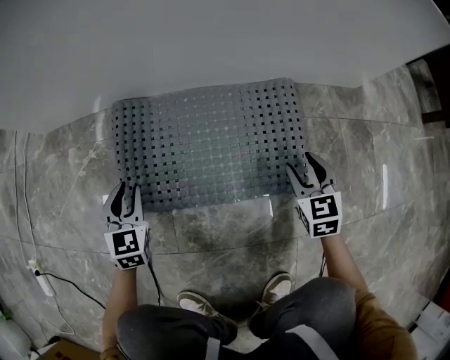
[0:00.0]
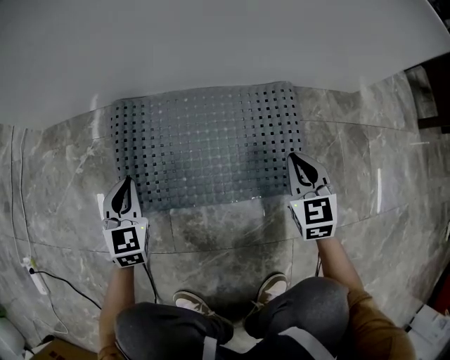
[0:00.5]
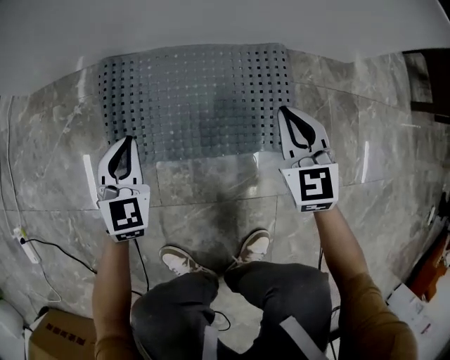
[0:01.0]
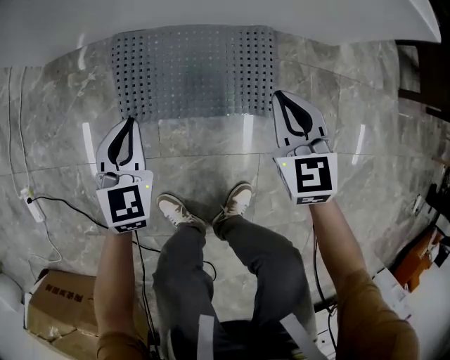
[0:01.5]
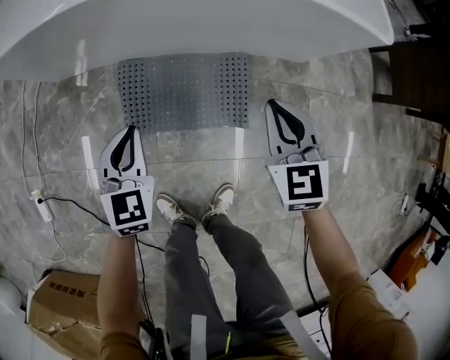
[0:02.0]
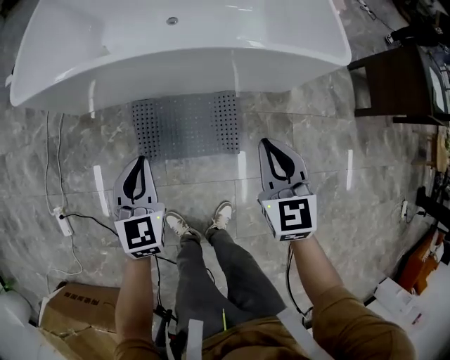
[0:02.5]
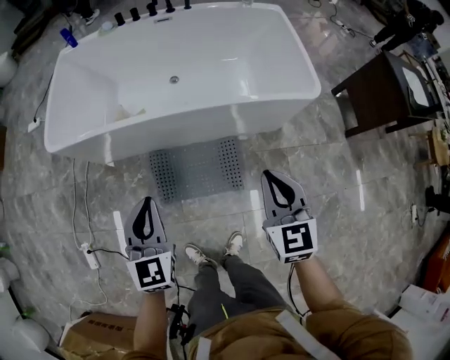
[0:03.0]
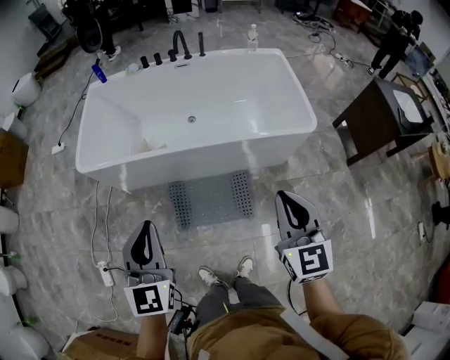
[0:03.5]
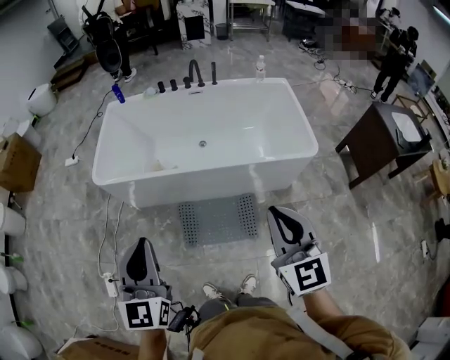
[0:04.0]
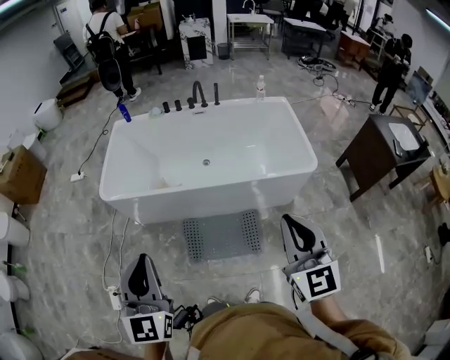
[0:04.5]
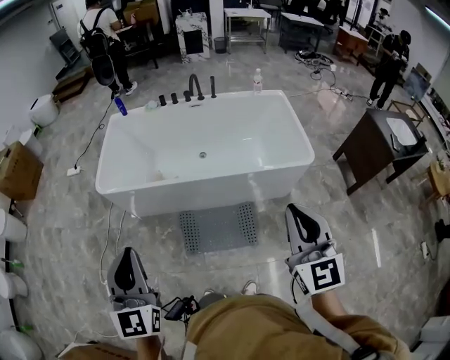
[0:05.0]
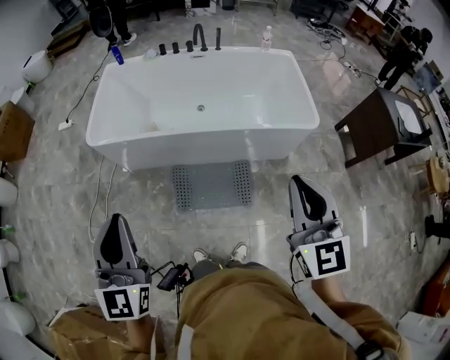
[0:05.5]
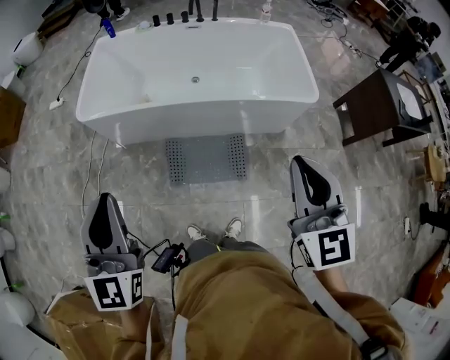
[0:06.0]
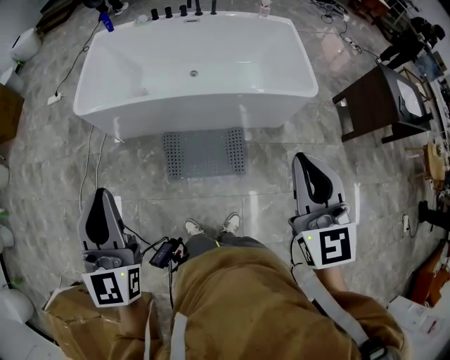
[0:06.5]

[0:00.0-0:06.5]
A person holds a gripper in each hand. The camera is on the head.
0:00.0 to 0:02.0: The two grippers go roughly 40 cm upward. The left gripper closes up, while the right gripper closes.
0:02.0 to 0:04.5: The grippers both shift upward by roughly 60 cm. The right gripper changes its angle by roughly 30 degrees; the left gripper swivels about 30 degrees.
0:04.5 to 0:06.5: The grippers stay close to where they were, moving slightly.

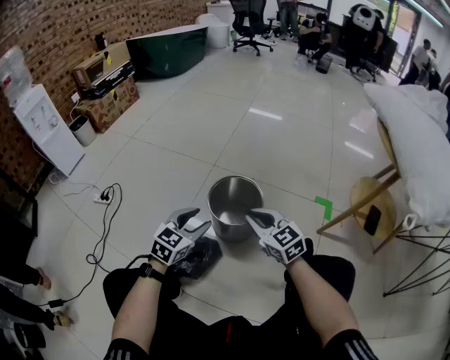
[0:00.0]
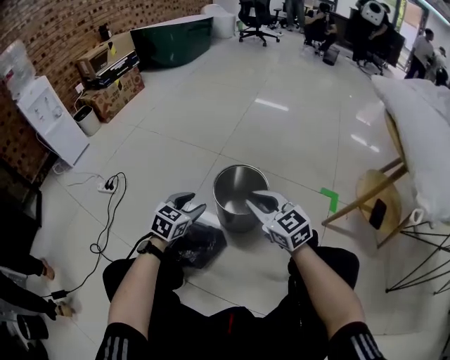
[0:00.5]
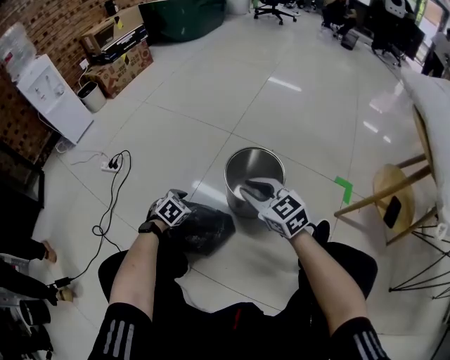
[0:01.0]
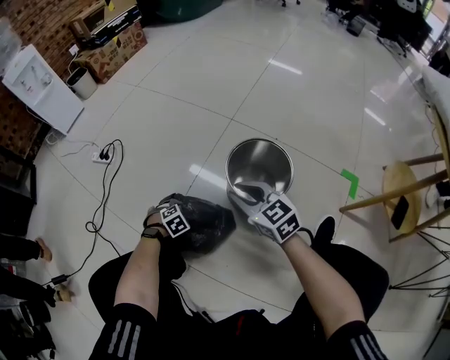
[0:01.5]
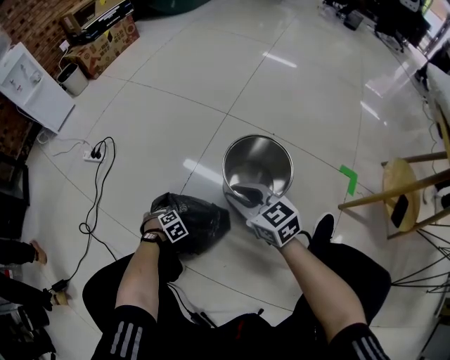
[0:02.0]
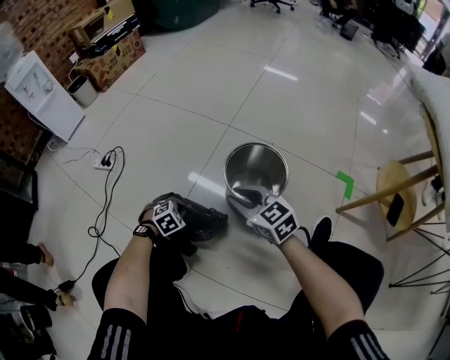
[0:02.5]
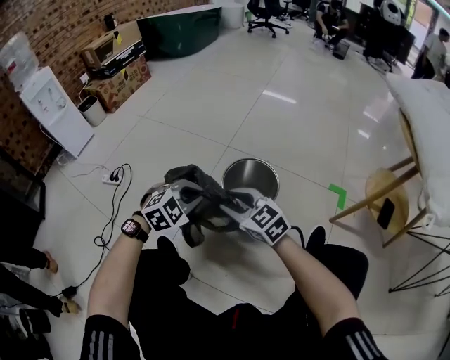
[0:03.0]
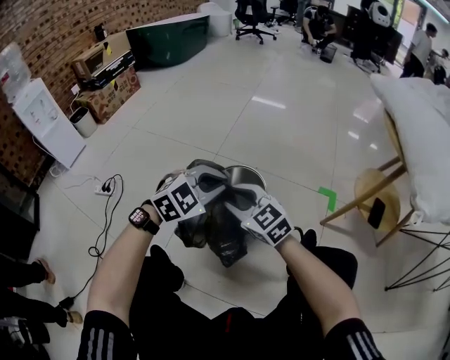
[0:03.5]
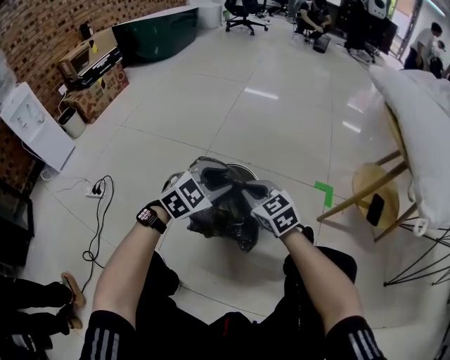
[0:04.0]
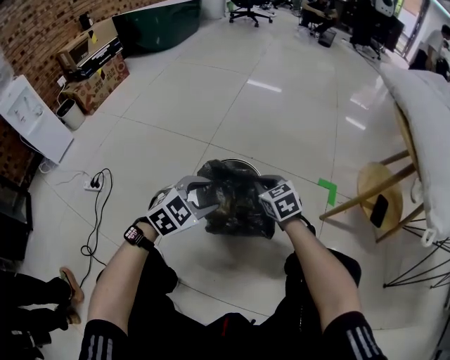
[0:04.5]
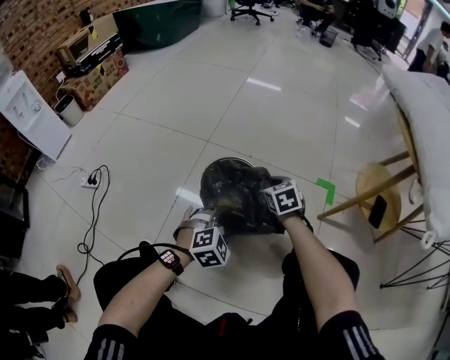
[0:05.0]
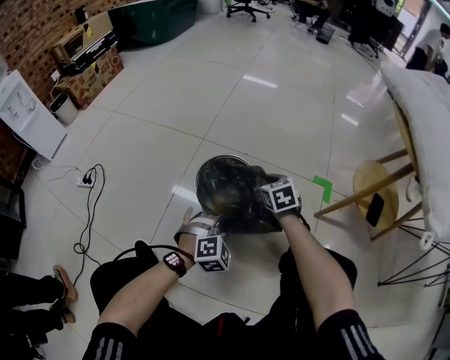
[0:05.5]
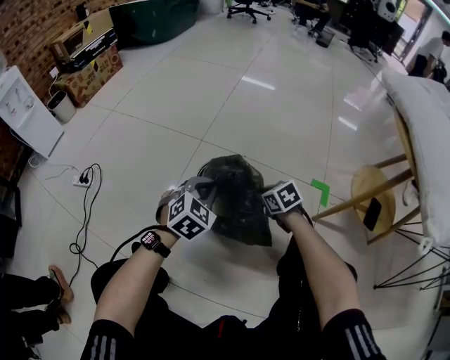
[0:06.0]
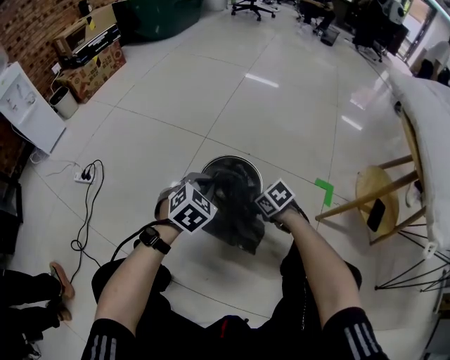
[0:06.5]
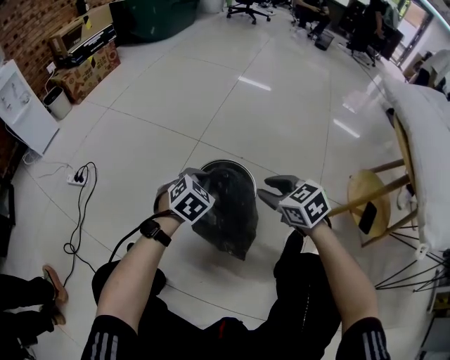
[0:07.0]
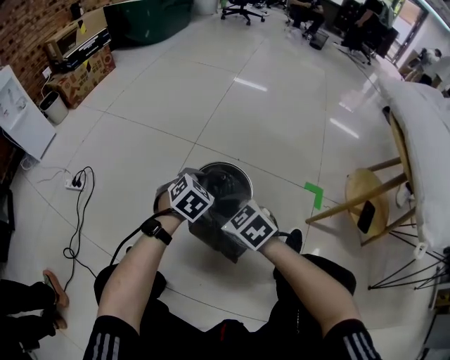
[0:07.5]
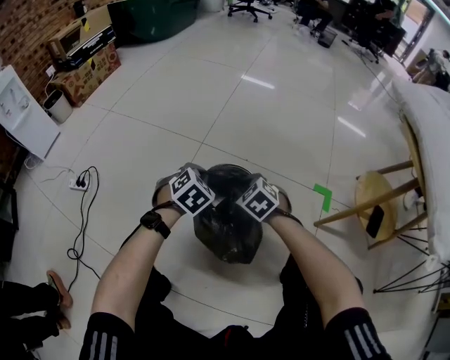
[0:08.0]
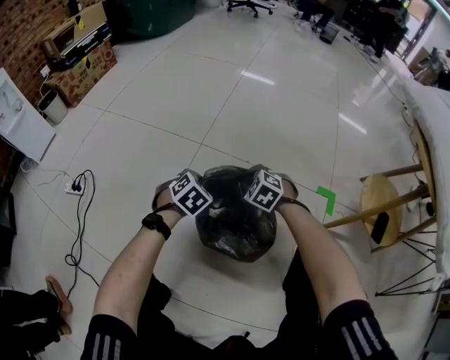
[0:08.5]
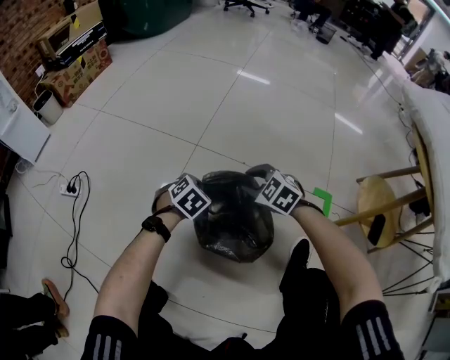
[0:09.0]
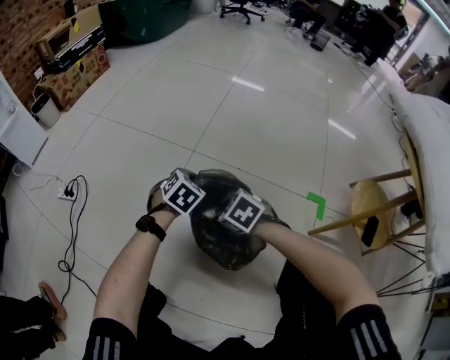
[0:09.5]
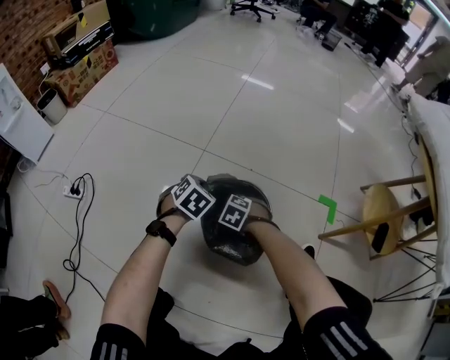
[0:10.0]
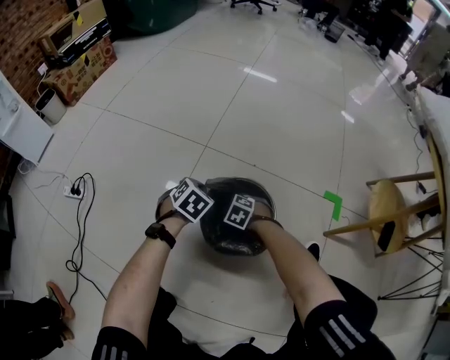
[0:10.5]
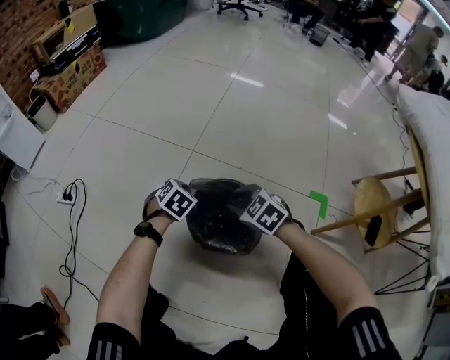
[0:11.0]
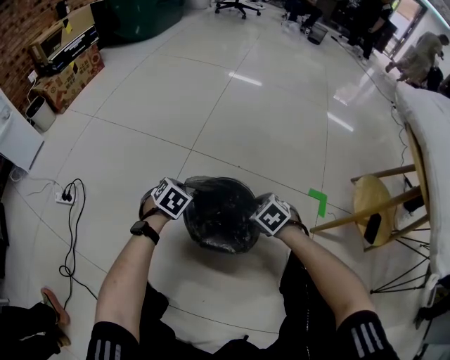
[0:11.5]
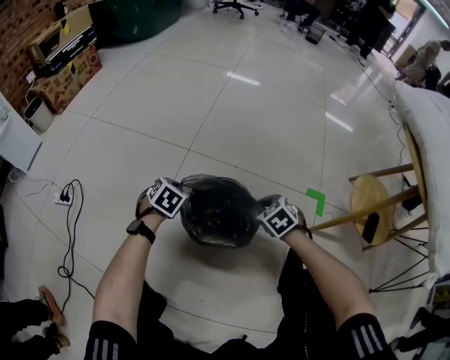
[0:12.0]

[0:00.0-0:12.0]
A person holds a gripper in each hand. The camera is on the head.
0:00.0 to 0:02.0: The left gripper shifts roughly 40 cm downward, points its fingers about 60 degrees further downward, and closes its fingers; the right gripper changes place by some 15 cm.
0:02.0 to 0:04.0: The left gripper moves upward, some 40 cm, tilts its fingers about 50 degrees upward, and opens its fingers, while the right gripper changes place by approximately 15 cm, and closes up.
0:04.0 to 0:06.0: The right gripper moves downward and to the right, roughly 15 cm, and swivels about 30 degrees; the left gripper is displaced downward by about 10 cm, rotates roughly 20 degrees, and closes its fingers.
0:06.0 to 0:08.0: The right gripper moves up and down over about 20 cm, changing direction 2 times, and swivels about 30 degrees, while the left gripper is displaced forward by about 10 cm.
0:08.0 to 0:10.0: The left gripper is displaced downward and forward by about 10 cm. The right gripper swings up and down, some 15 cm each way, with 2 reversals, and turns by approximately 20 degrees.
0:10.0 to 0:12.0: The right gripper moves up and down over roughly 20 cm, changing direction 2 times, turns by approximately 30 degrees, and opens, then closes once more.

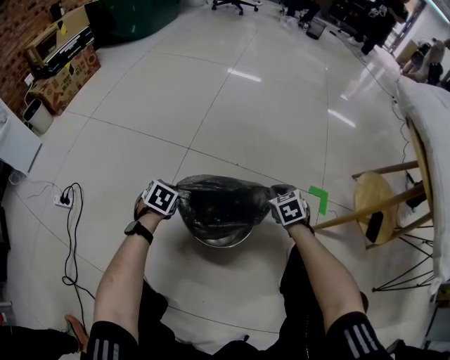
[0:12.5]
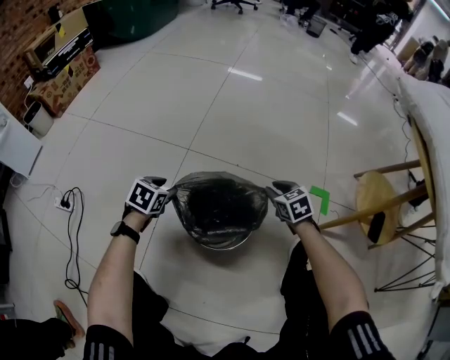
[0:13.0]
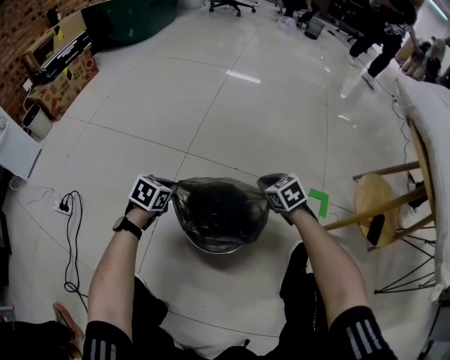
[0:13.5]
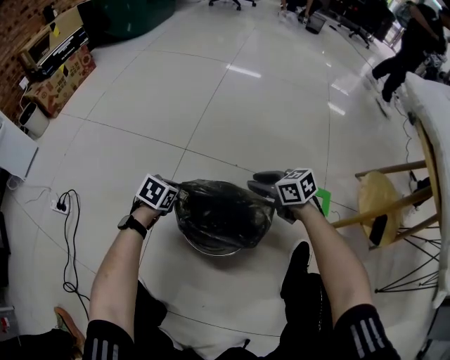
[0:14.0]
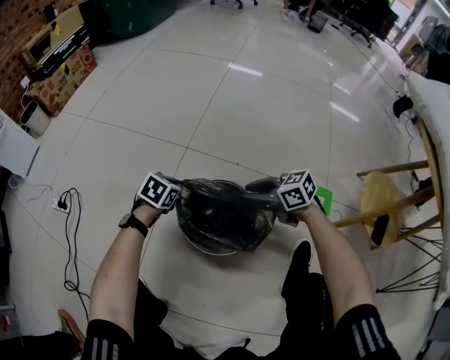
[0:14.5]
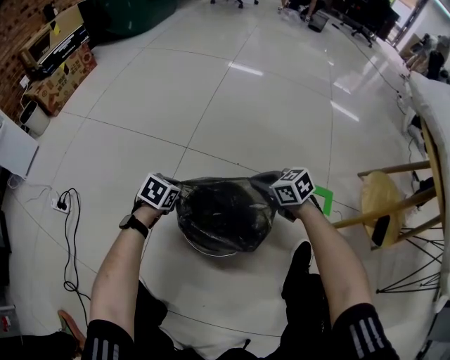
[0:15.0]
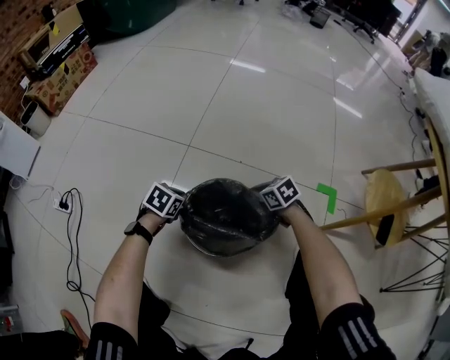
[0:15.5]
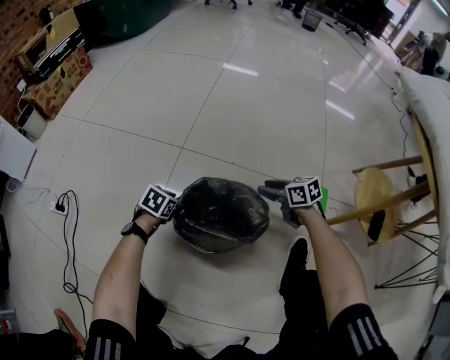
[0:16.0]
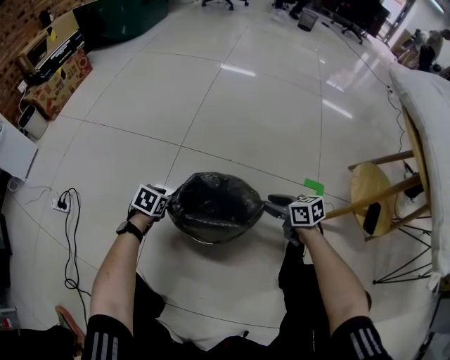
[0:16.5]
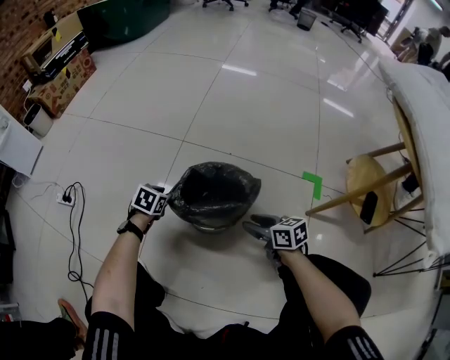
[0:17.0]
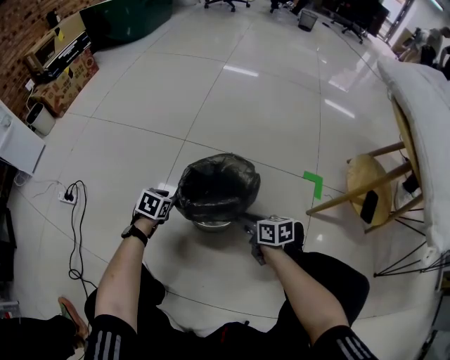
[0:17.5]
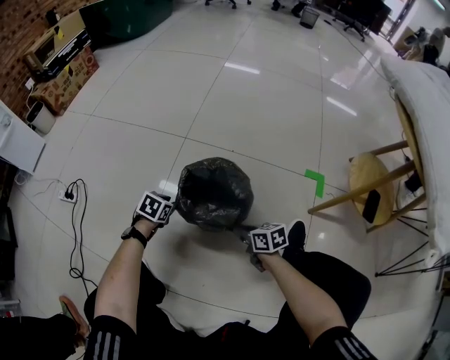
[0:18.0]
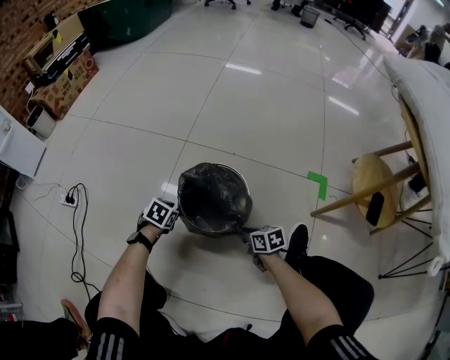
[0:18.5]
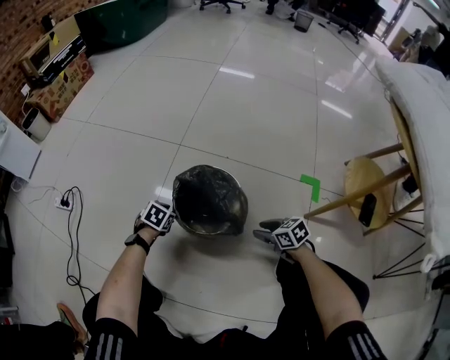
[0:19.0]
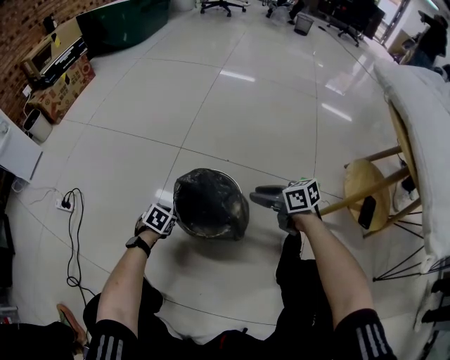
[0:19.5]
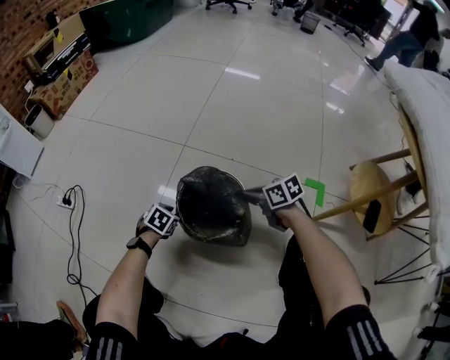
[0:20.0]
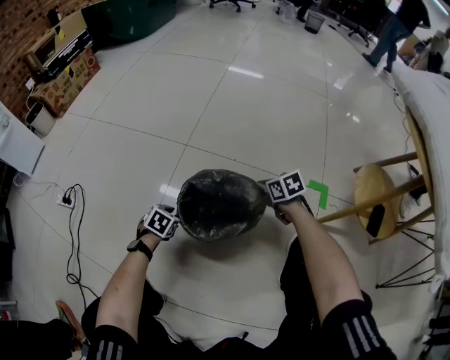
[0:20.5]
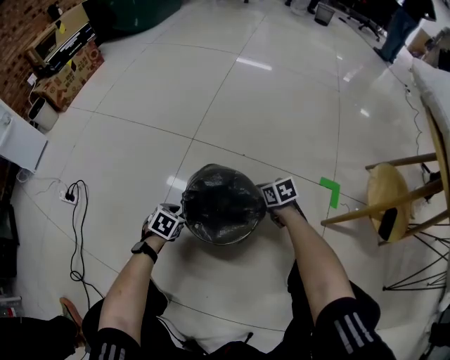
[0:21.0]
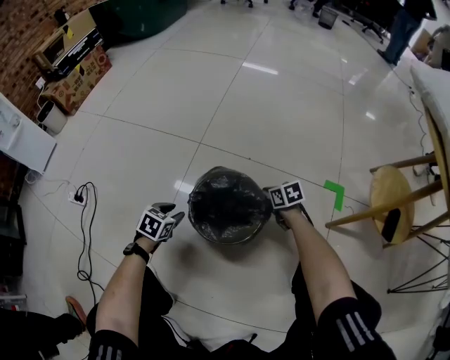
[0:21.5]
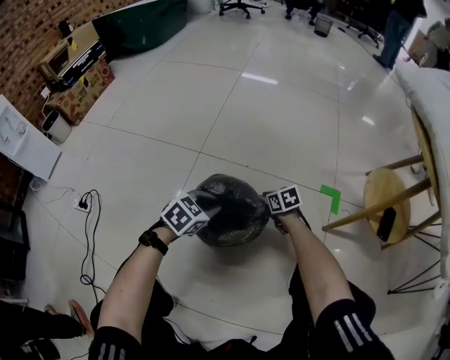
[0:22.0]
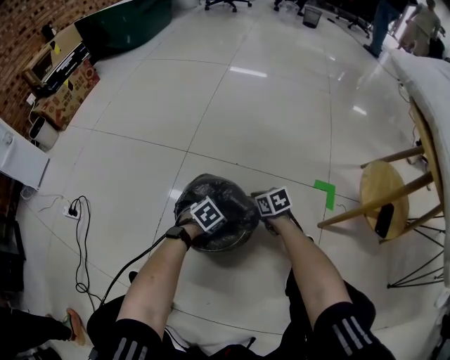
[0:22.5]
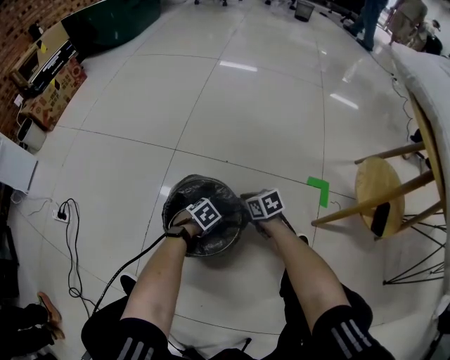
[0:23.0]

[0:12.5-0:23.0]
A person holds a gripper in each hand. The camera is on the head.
0:12.5 to 0:14.5: The left gripper opens, then closes once more. The right gripper heads to the left, covering some 10 cm, swivels some 50 degrees, and opens.
0:14.5 to 0:16.5: The left gripper shifts by about 5 cm, and opens its fingers. Meanwhile the right gripper goes approximately 10 cm to the right and backward, moves approximately 10 cm downward and comes back, changes its angle by some 30 degrees, and closes, then reopens.
0:16.5 to 0:19.0: The right gripper travels backward and downward by roughly 15 cm, and closes and opens again. Meanwhile the left gripper heads backward, covering approximately 10 cm.
0:19.0 to 0:21.0: The right gripper heads forward, covering approximately 20 cm, and closes.
0:21.0 to 0:23.0: The right gripper opens its fingers. The left gripper travels upward and back again, about 15 cm each way, and changes its angle by some 30 degrees.
